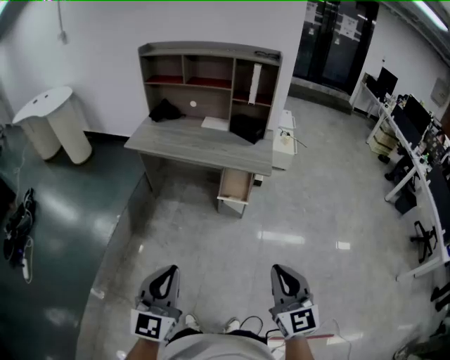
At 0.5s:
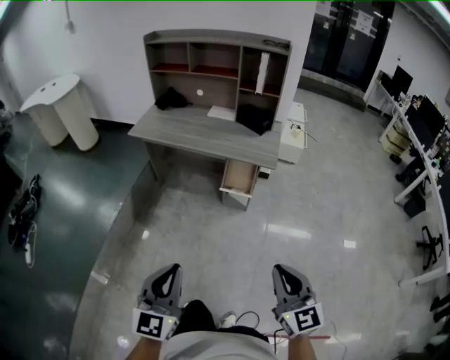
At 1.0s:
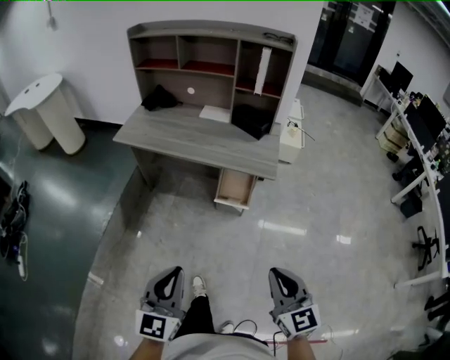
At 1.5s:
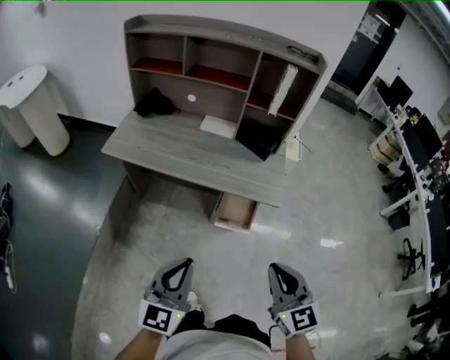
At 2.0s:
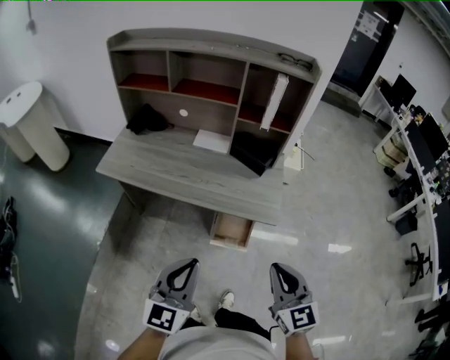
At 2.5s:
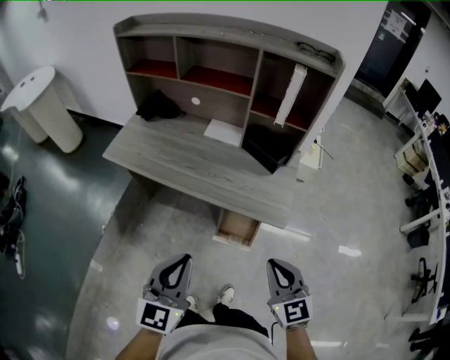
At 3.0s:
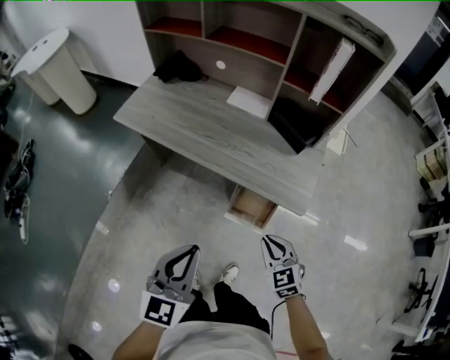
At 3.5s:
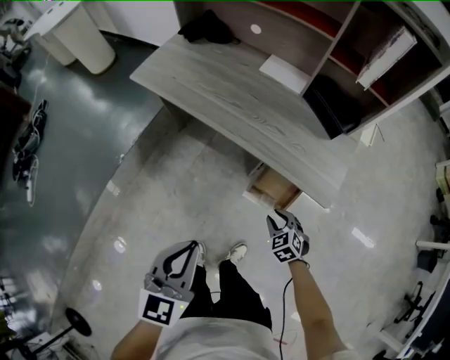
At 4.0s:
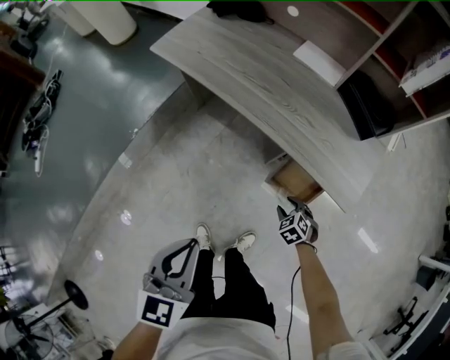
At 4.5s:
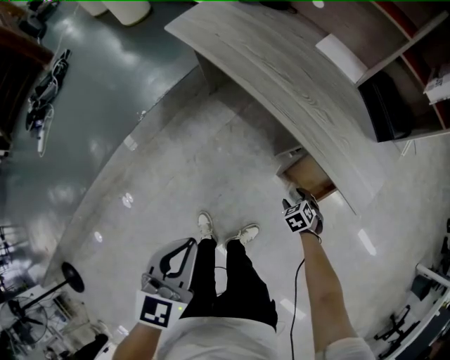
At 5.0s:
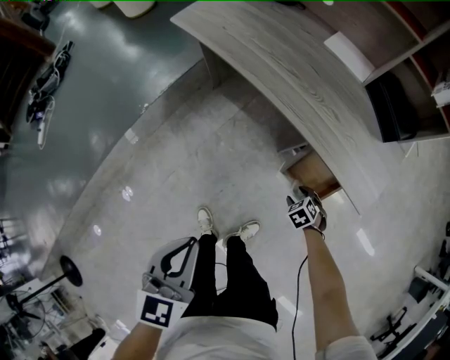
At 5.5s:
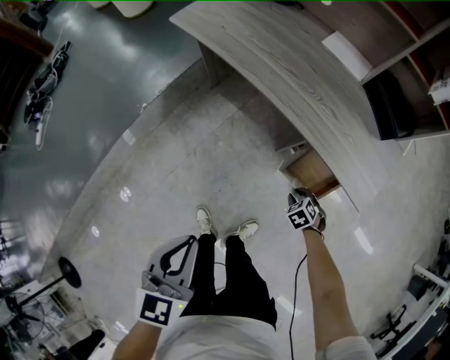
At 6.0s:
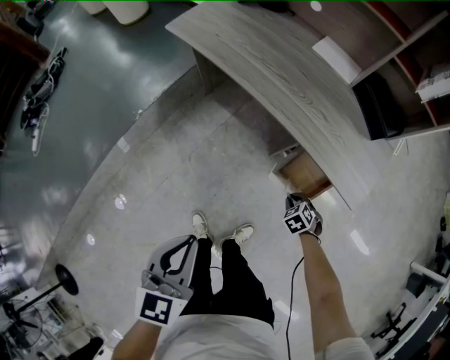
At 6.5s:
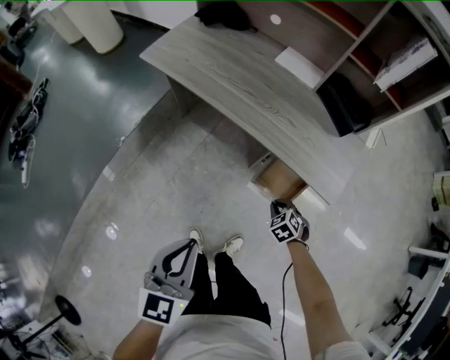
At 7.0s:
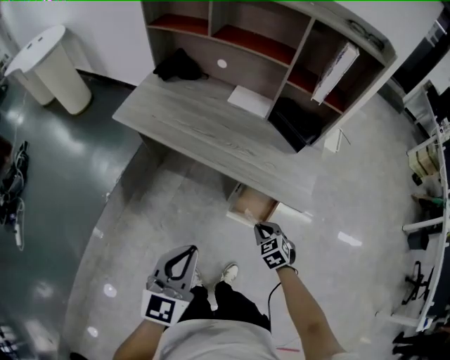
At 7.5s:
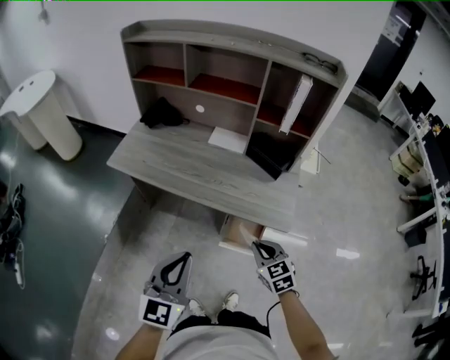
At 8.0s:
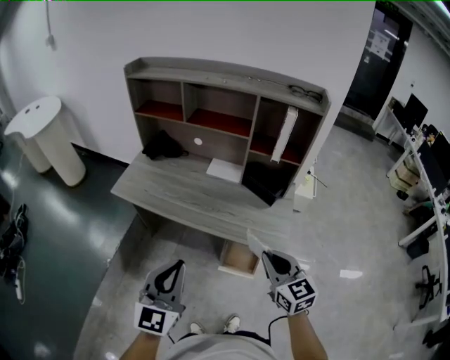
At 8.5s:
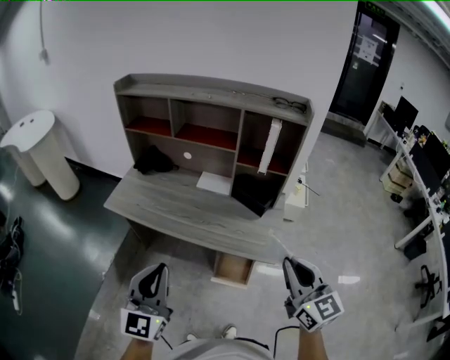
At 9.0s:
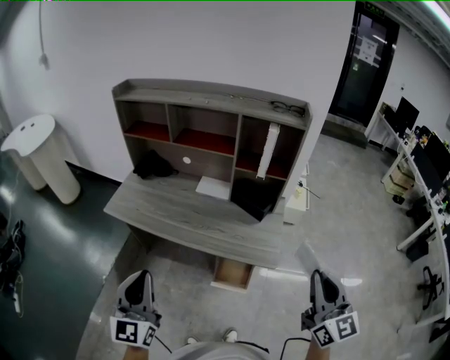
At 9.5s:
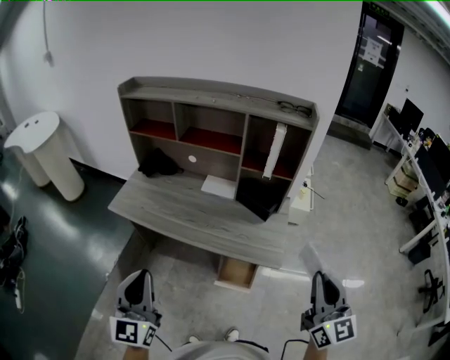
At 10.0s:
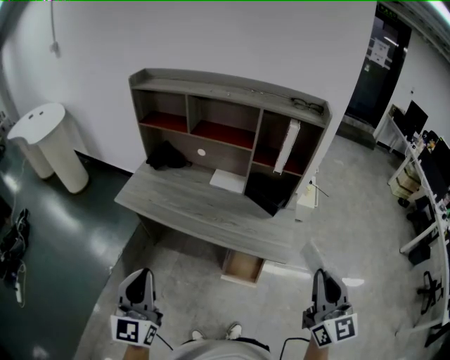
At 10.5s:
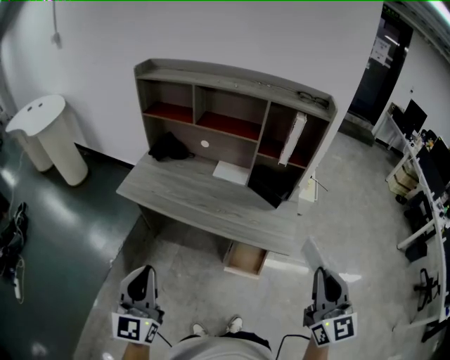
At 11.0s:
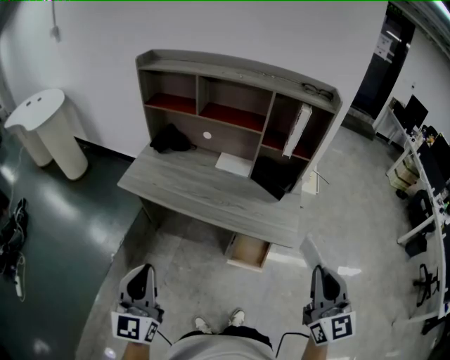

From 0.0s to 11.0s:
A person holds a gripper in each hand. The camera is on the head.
From 0.0s to 2.0s: Both grippers are carried forward, roughly 40 cm.
From 2.0s to 3.5s: The left gripper is displaced downward by some 10 cm, and changes its angle by roughly 30 degrees. The right gripper is displaced downward by approximately 40 cm, angles its fingers downward, by approximately 40 degrees, and opens its fingers.
From 3.5s to 5.5s: The left gripper shifts by about 10 cm. Meanwhile the right gripper travels downward by some 15 cm, swivels approximately 20 degrees, and opens, then closes once more.
From 5.5s to 7.5s: The left gripper goes some 15 cm upward, and turns by some 40 degrees, while the right gripper moves upward, about 40 cm, and tilts its fingers roughly 40 degrees upward.
From 7.5s to 9.0s: The left gripper shifts some 10 cm upward and to the left, while the right gripper heads upward and to the right, covering approximately 30 cm, and angles its fingers upward, by about 40 degrees.
From 9.0s to 11.0s: Both grippers move to the left, some 10 cm.

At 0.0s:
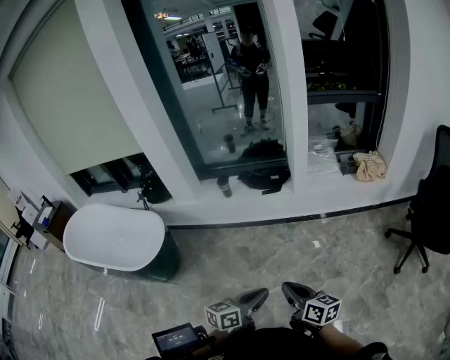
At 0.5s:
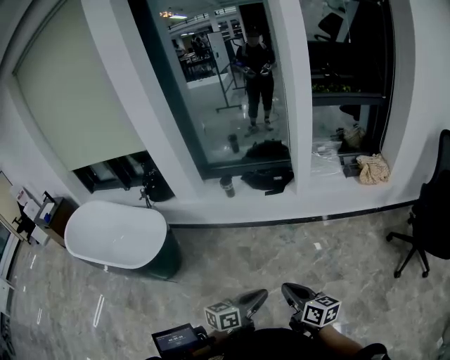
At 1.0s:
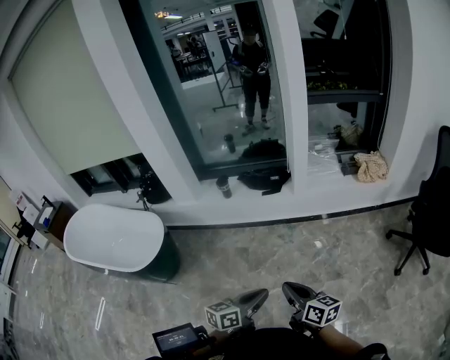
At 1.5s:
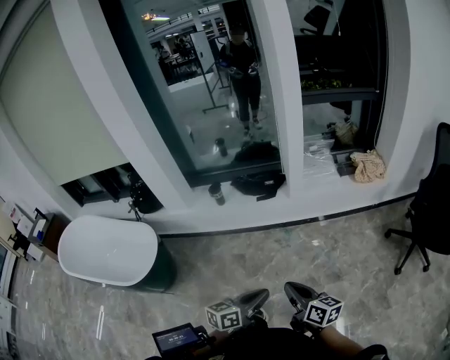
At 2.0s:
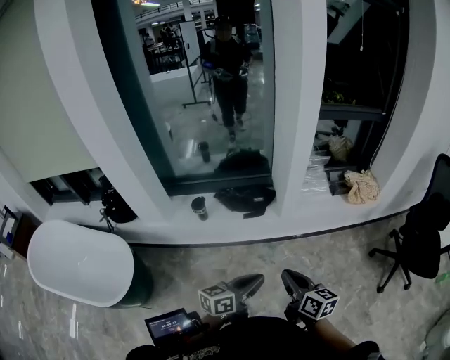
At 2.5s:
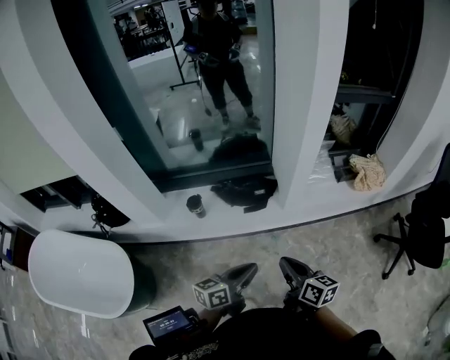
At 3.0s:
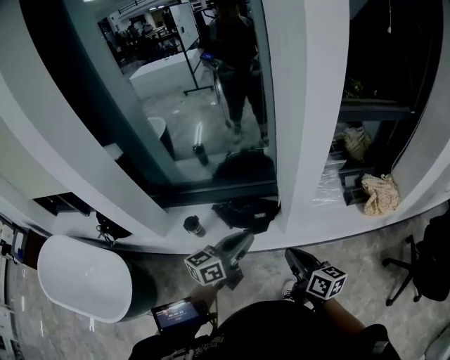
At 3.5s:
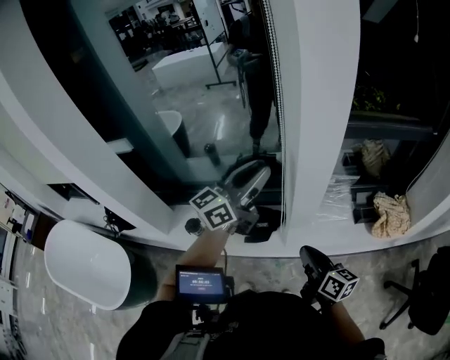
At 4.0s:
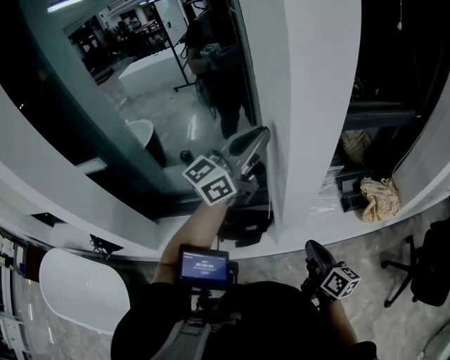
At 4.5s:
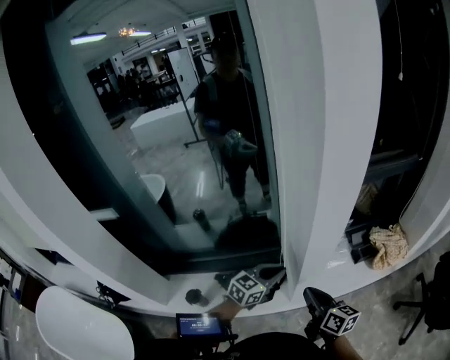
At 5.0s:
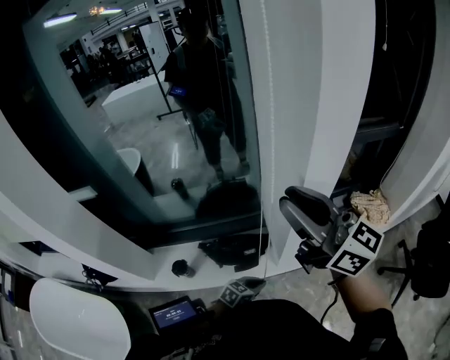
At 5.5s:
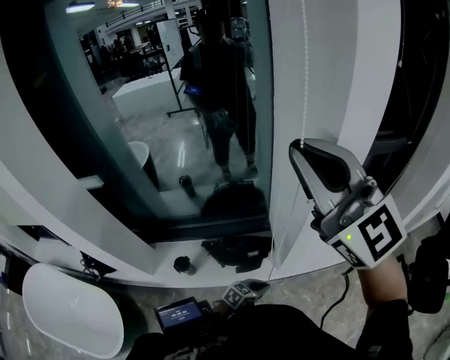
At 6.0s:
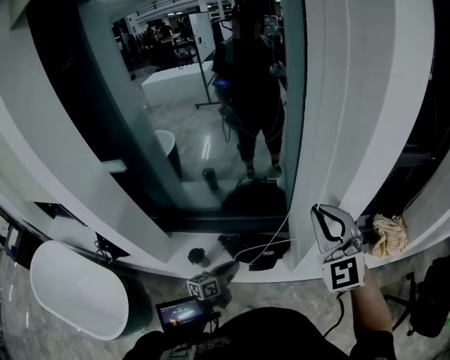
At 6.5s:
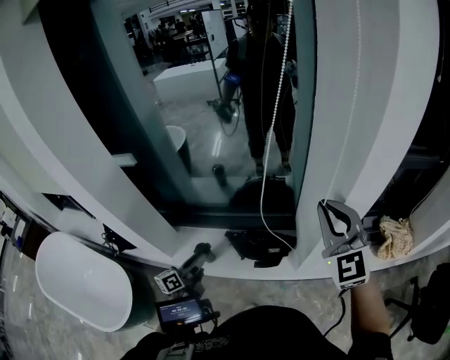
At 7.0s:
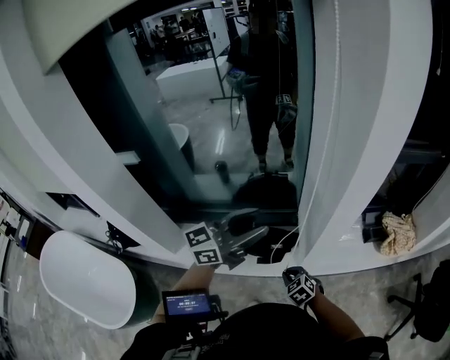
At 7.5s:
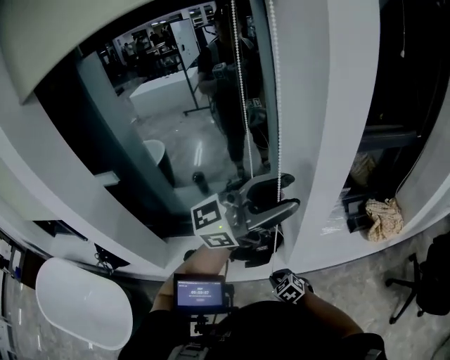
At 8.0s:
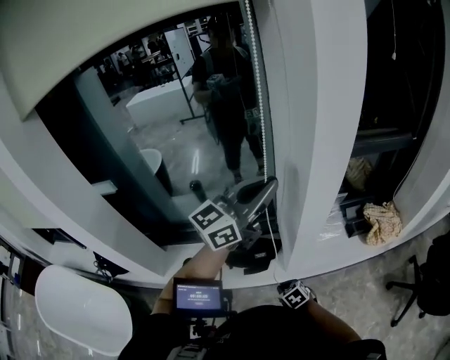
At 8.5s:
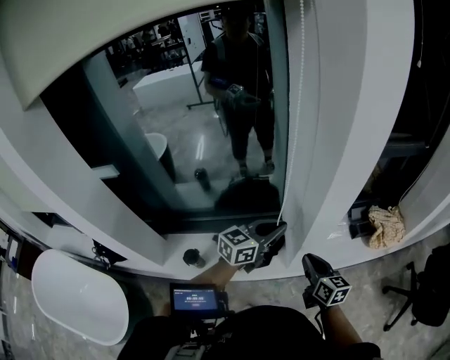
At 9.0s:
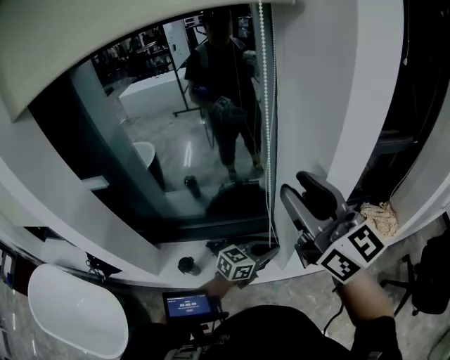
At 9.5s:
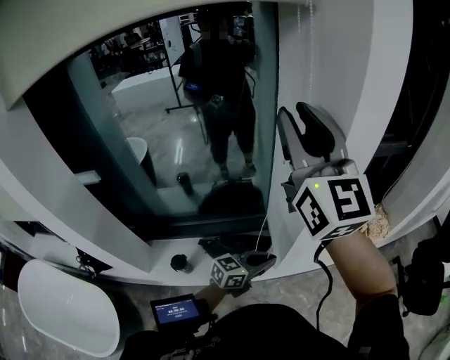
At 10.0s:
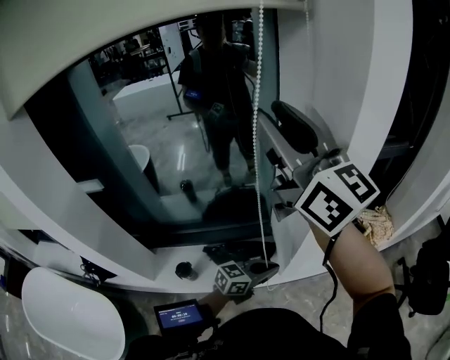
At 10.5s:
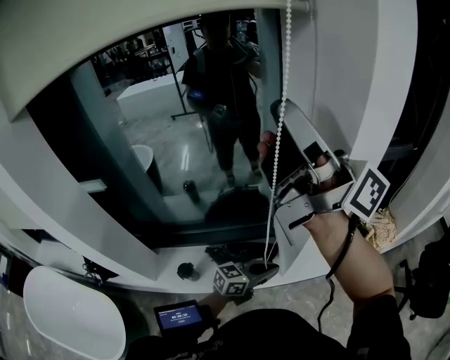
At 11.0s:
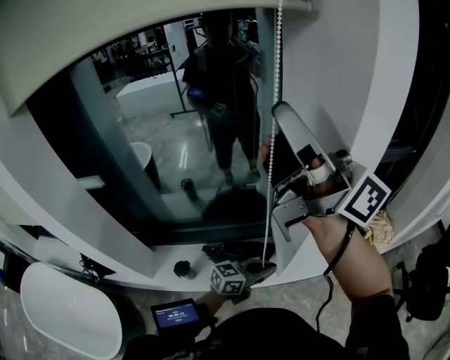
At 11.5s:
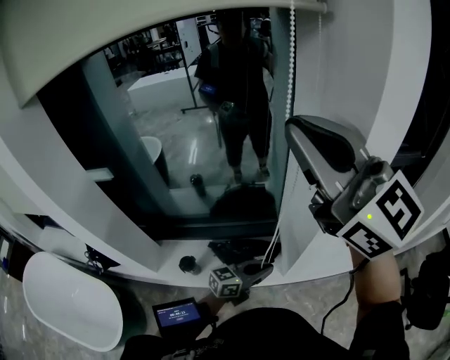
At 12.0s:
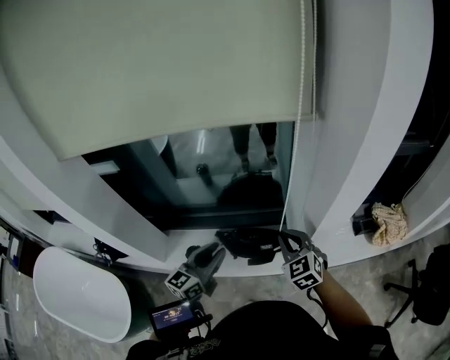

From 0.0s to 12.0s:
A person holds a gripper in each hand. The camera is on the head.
From 0.0s to 2.0s: The two grippers go roughly 25 cm forward.
From 2.0s to 4.0s: The right gripper moves forward, approximately 40 cm. The left gripper travels forward and upward by roughly 60 cm, and changes its angle by about 40 degrees.
From 4.0s to 6.0s: The right gripper heads upward and to the left, covering roughly 30 cm, and twists about 80 degrees counterclockwise, seen from behind. The left gripper travels downward, to the left and backward by roughly 50 cm, and angles its fingers downward, by some 30 degrees.
From 6.0s to 8.0s: The left gripper goes some 40 cm upward, tips its fingers upward by some 30 degrees, and opens and closes again. Meanwhile the right gripper moves downward, about 50 cm, and angles its fingers downward, by roughly 60 degrees.
From 8.0s to 10.0s: The right gripper is displaced upward by some 70 cm, angles its fingers upward, by roughly 80 degrees, and opens its fingers. The left gripper is displaced downward by about 30 cm, and turns by some 40 degrees.
From 10.0s to 12.0s: The left gripper moves to the left, roughly 20 cm, rotates some 40 degrees, and opens up. The right gripper is displaced downward by roughly 40 cm, tips its fingers downward by about 50 degrees, and closes.

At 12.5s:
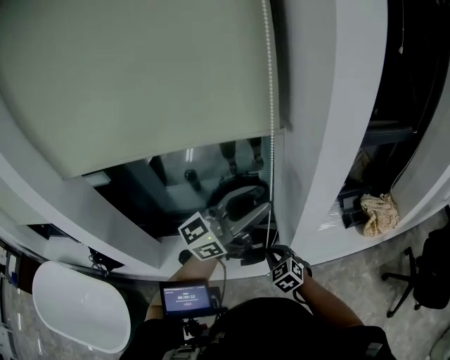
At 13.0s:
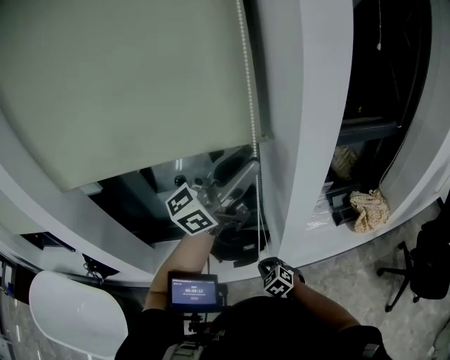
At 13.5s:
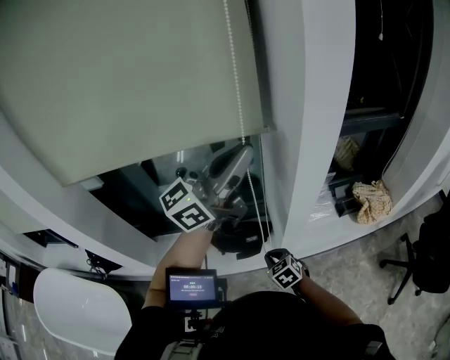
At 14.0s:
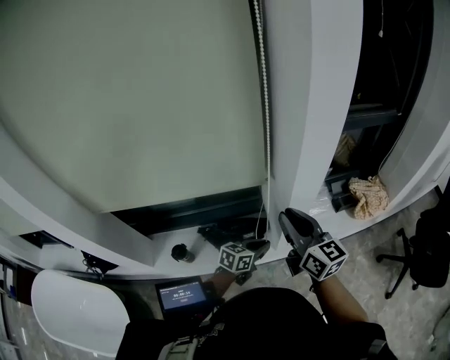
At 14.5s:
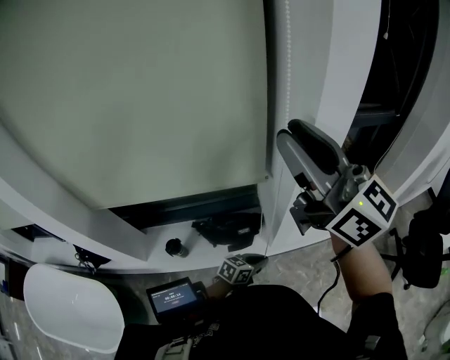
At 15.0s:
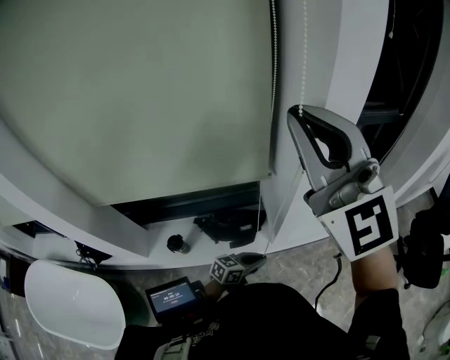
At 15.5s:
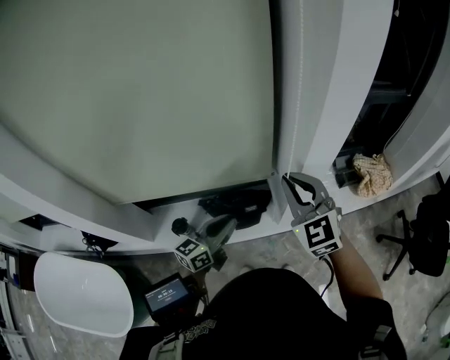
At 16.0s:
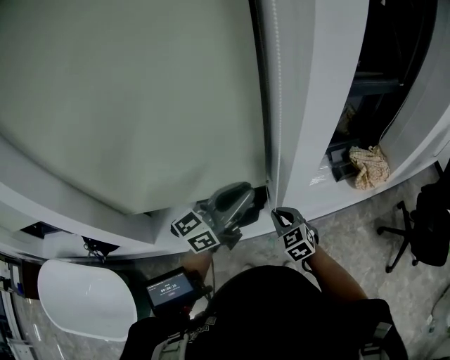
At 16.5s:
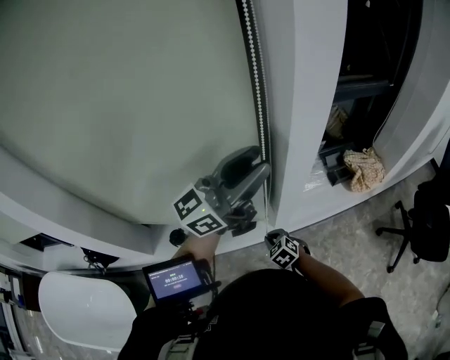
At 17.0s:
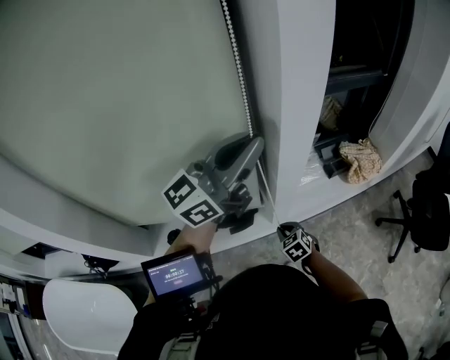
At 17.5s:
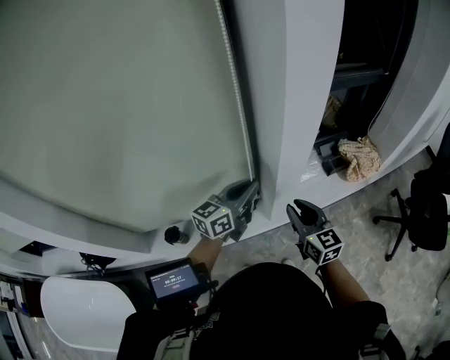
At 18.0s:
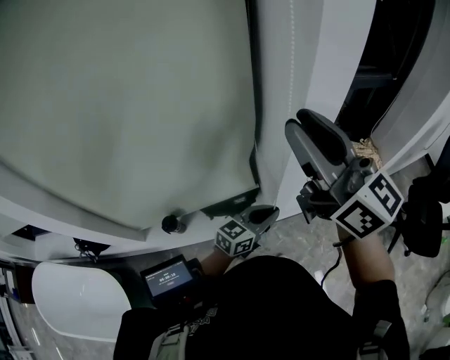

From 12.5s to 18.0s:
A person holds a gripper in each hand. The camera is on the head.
From 12.5s to 14.5s: The left gripper is displaced downward by approximately 40 cm, tilts its fingers approximately 50 degrees downward, and closes; the right gripper heads upward, covering roughly 50 cm, points its fingers some 60 degrees further upward, and opens up.
From 14.5s to 16.0s: The right gripper moves downward, approximately 50 cm, tilts its fingers roughly 60 degrees downward, and closes its fingers. The left gripper is displaced upward by roughly 30 cm, and tips its fingers upward by approximately 40 degrees.
From 16.0s to 18.0s: The right gripper moves upward, some 40 cm, angles its fingers upward, by approximately 50 degrees, and opens up. The left gripper goes approximately 20 cm downward and to the right, and rotates approximately 20 degrees.
